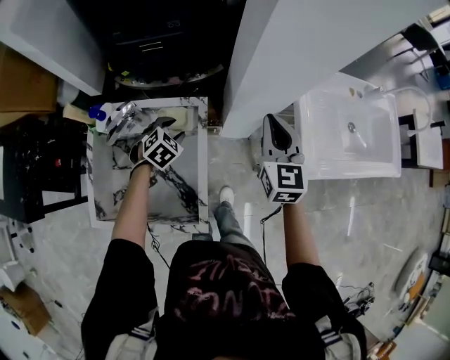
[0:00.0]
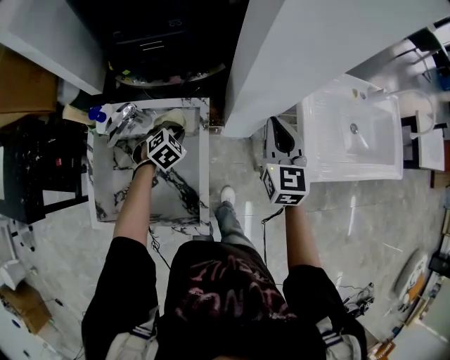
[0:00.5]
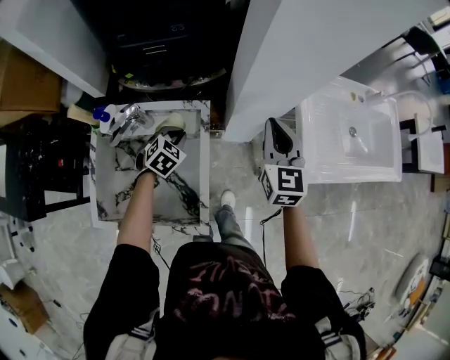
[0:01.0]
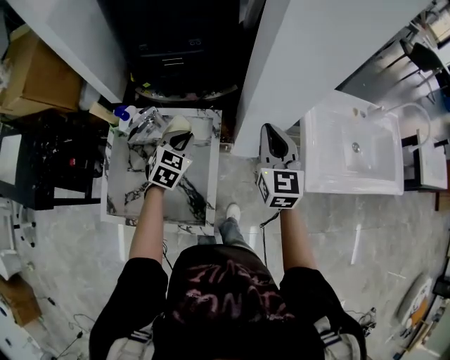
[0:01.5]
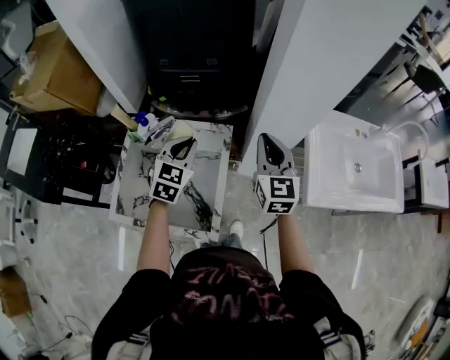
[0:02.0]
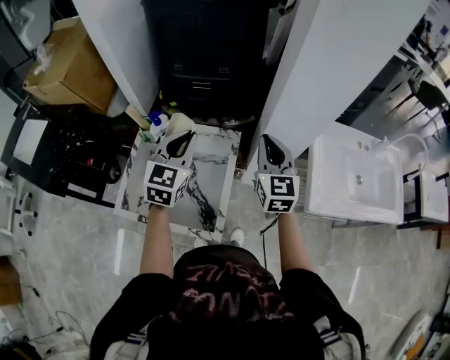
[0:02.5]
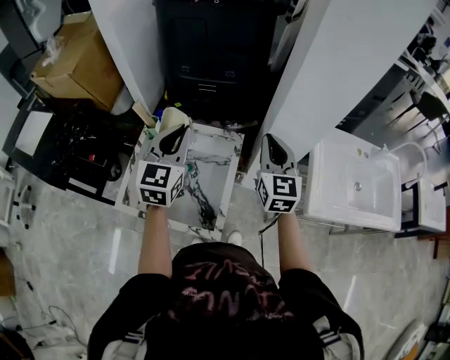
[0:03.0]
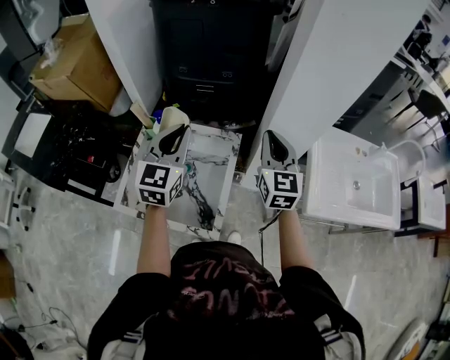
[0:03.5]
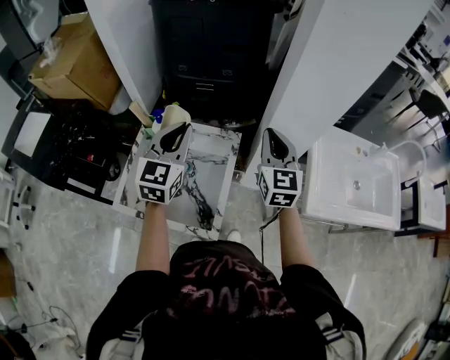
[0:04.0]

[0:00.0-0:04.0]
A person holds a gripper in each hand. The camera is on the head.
0:00.0 to 0:02.0: The left gripper shifts about 20 cm upward, tilts its fingers some 30 degrees upward, and closes up. The right gripper travels upward and to the left by some 10 cm.
0:02.0 to 0:04.0: The left gripper travels upward by some 15 cm, and turns by some 20 degrees.

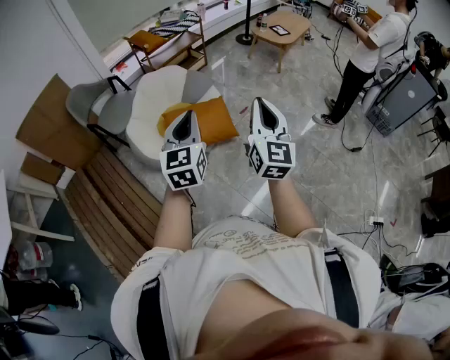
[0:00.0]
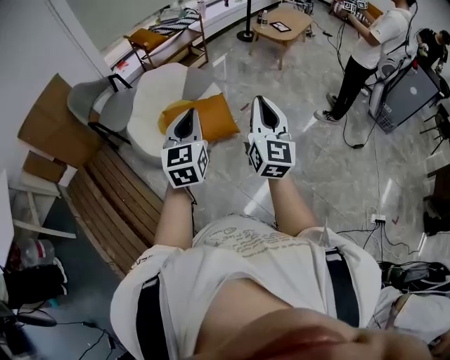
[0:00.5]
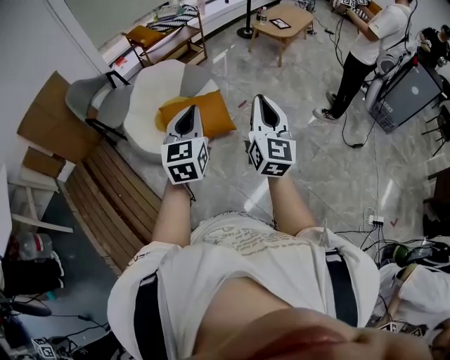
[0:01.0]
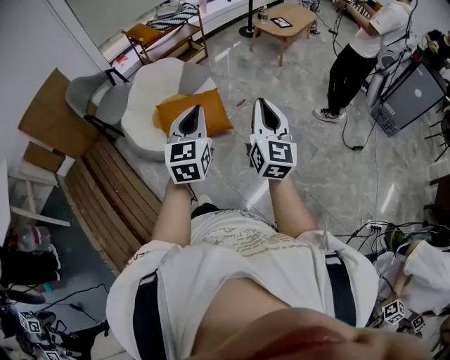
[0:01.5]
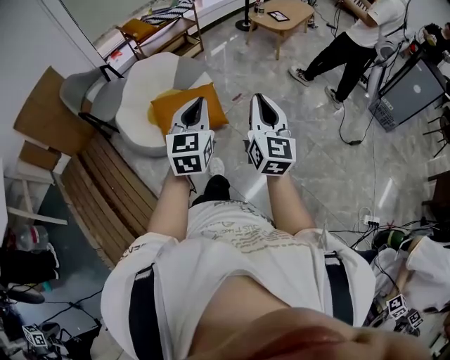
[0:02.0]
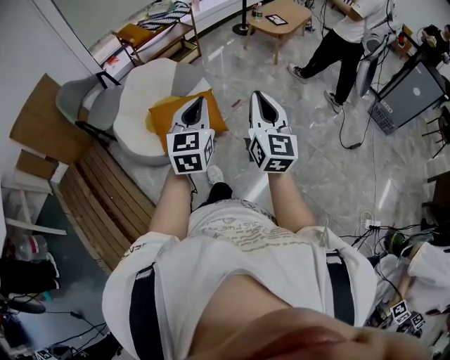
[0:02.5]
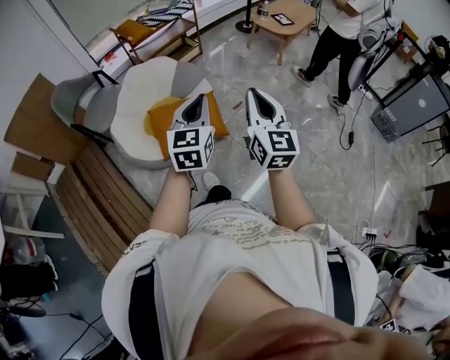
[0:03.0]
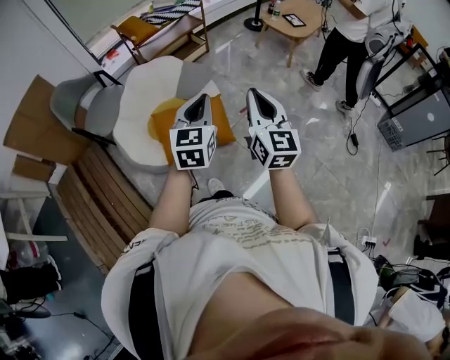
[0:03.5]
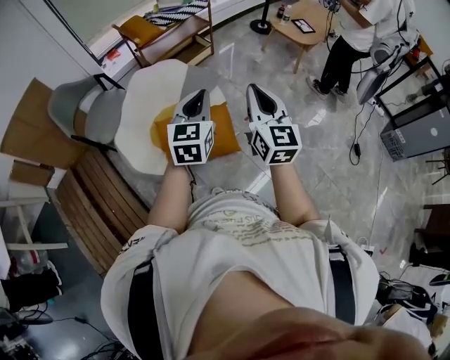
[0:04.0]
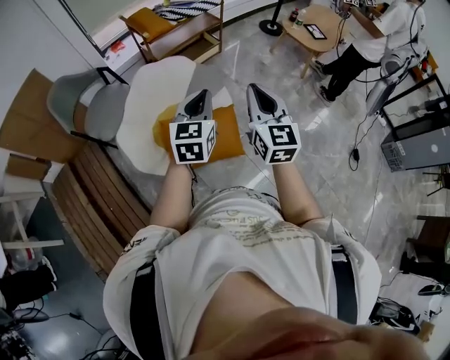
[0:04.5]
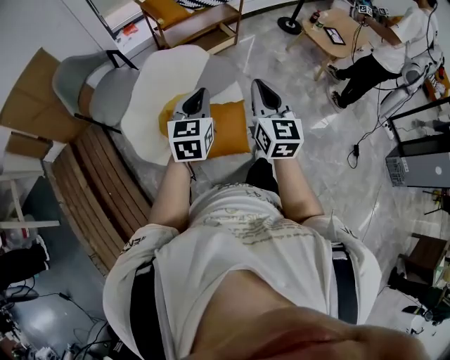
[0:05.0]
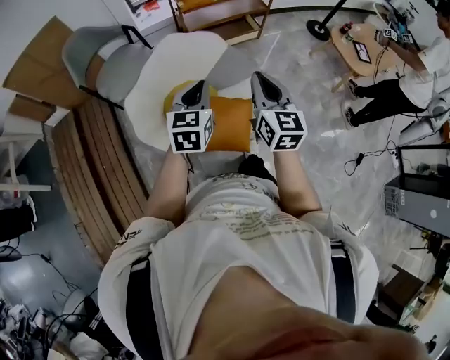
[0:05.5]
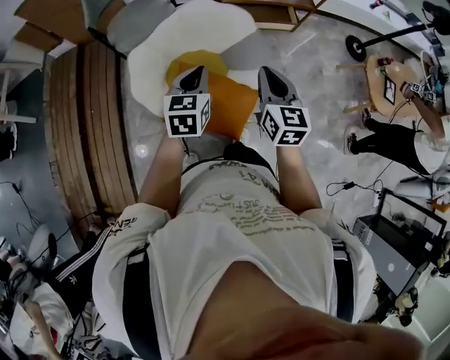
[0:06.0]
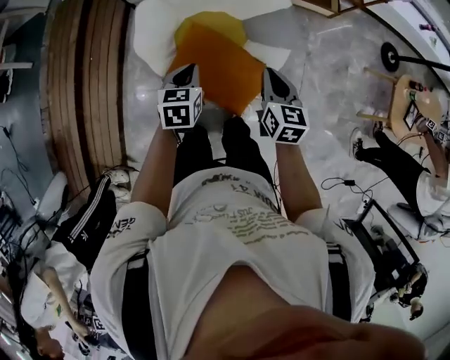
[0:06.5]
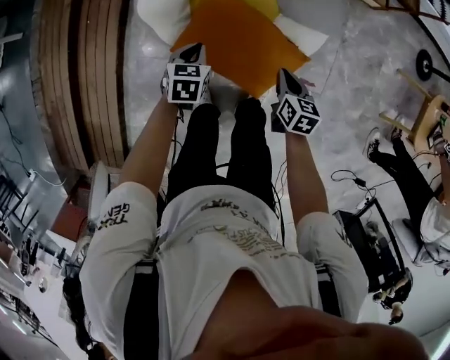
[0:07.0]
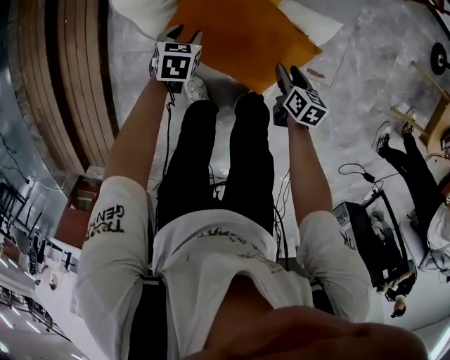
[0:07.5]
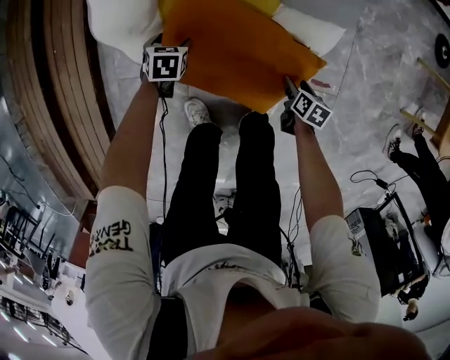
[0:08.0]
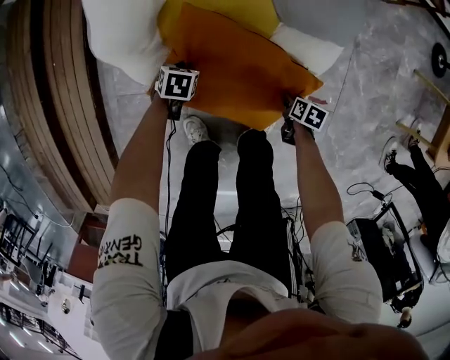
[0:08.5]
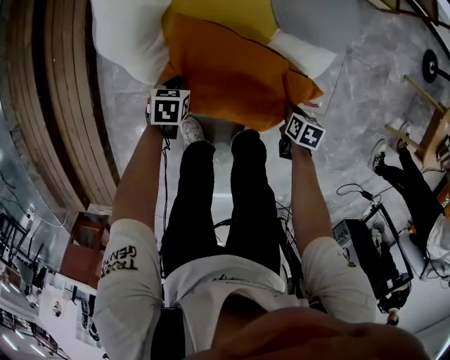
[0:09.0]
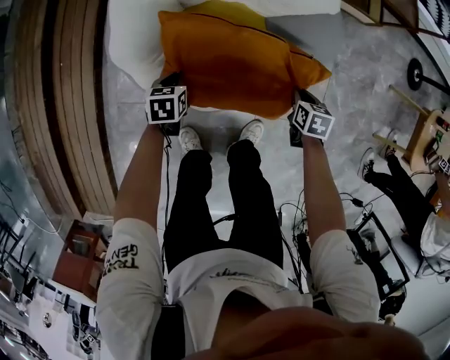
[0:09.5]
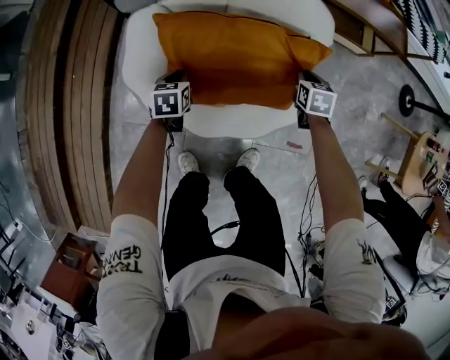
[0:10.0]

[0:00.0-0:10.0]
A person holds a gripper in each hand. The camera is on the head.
0:00.0 to 0:02.0: The two grippers go some 15 cm to the right.
0:02.0 to 0:04.0: Both grippers move forward, approximately 35 cm.
0:04.0 to 0:06.0: The left gripper changes place by approximately 25 cm, and rotates about 40 degrees, while the right gripper changes place by some 30 cm, and rotates about 40 degrees.
0:06.0 to 0:08.0: Both grippers travel together downward, about 60 cm. The left gripper points its fingers roughly 40 degrees further downward, and opens; the right gripper tips its fingers downward by roughly 50 degrees, and opens.
0:08.0 to 0:10.0: The right gripper shifts by approximately 35 cm, swivels about 40 degrees, and closes. Meanwhile the left gripper moves upward, some 15 cm, turns by approximately 20 degrees, and closes.

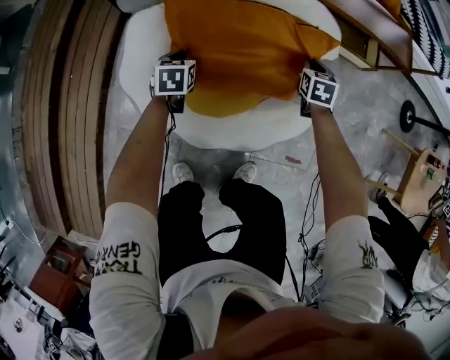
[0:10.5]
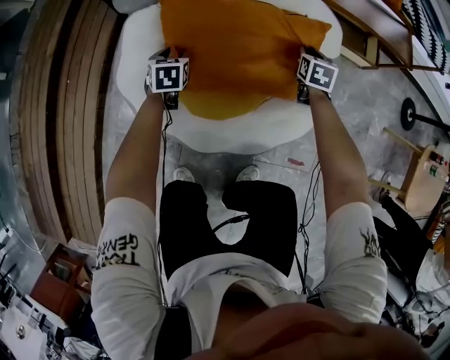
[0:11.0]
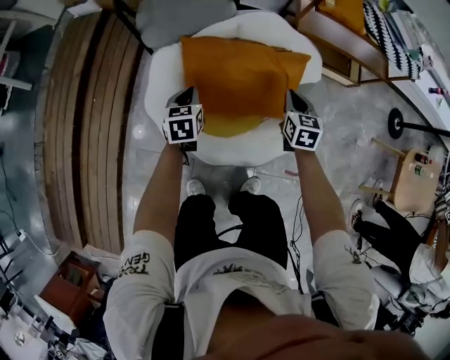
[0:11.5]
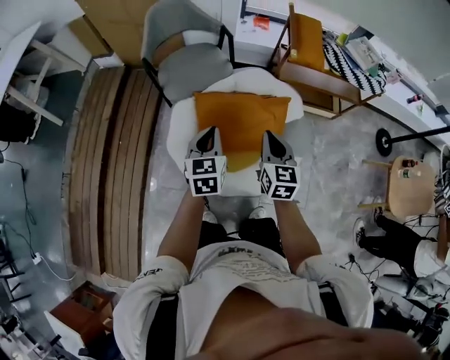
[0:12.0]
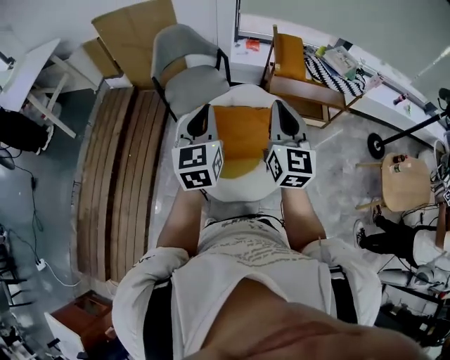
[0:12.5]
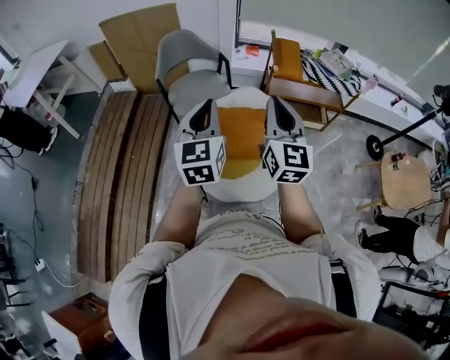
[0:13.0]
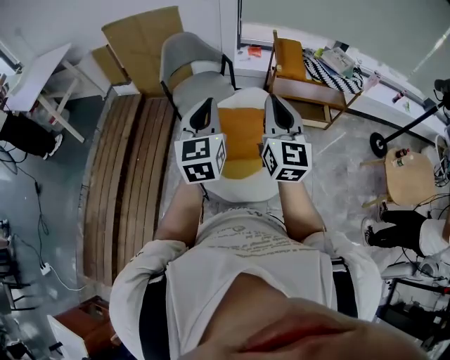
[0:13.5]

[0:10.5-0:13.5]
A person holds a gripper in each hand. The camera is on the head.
0:10.5 to 0:12.0: The left gripper is displaced upward by about 40 cm, turns by roughly 20 degrees, and opens and closes again, while the right gripper heads upward, backward and to the left, covering approximately 50 cm, and swivels approximately 30 degrees.
0:12.0 to 0:13.5: The grippers both shift upward by some 30 cm. The left gripper turns by roughly 20 degrees, while the right gripper rotates approximately 30 degrees.

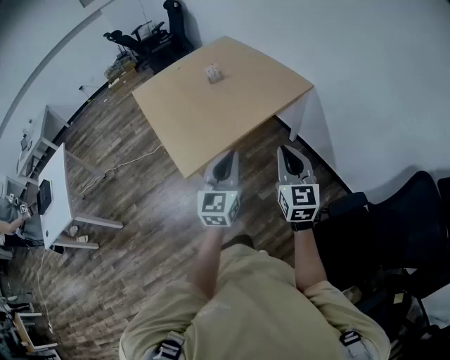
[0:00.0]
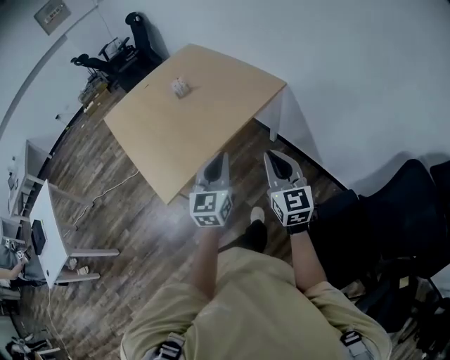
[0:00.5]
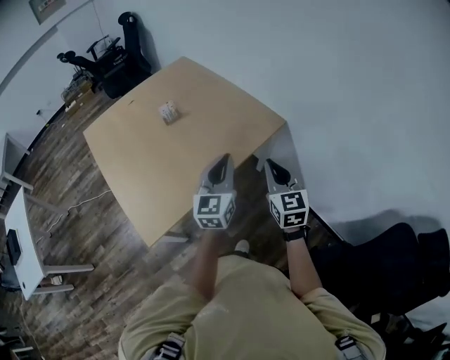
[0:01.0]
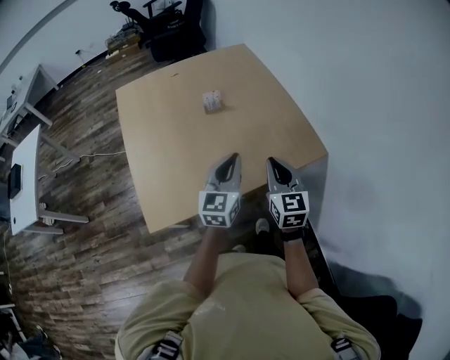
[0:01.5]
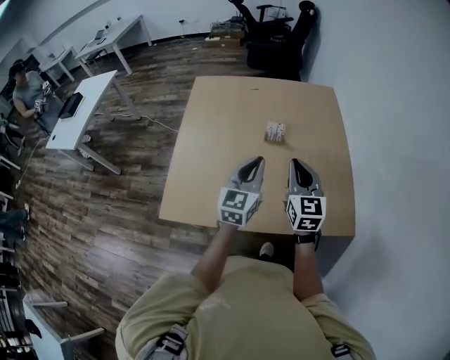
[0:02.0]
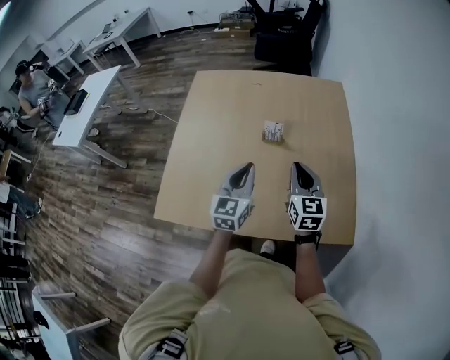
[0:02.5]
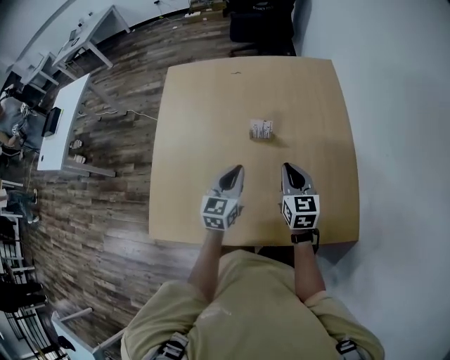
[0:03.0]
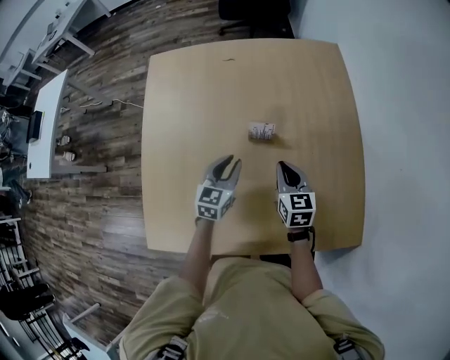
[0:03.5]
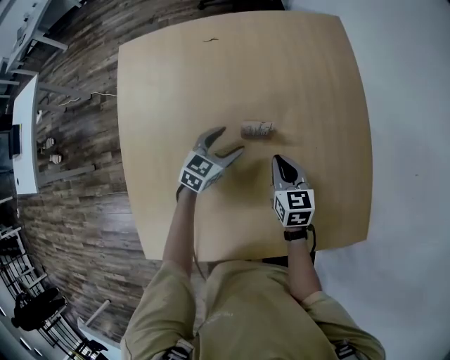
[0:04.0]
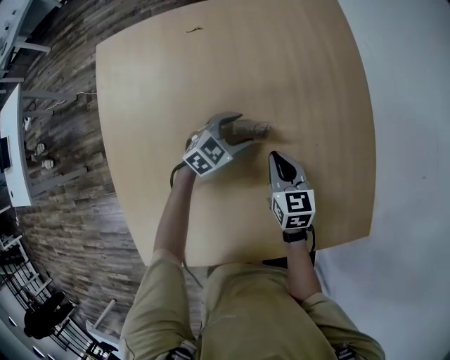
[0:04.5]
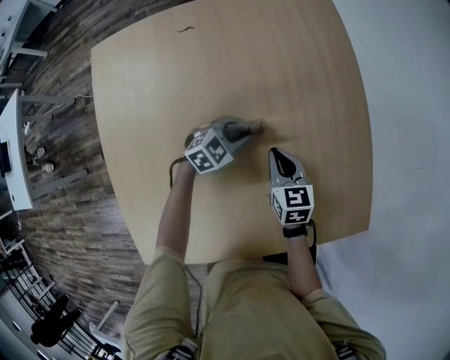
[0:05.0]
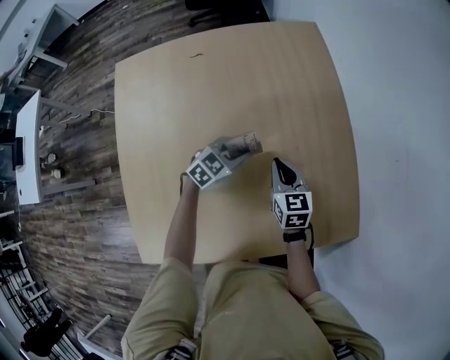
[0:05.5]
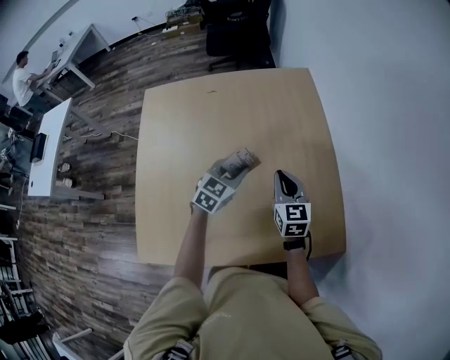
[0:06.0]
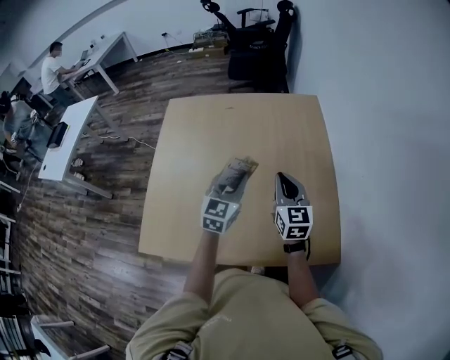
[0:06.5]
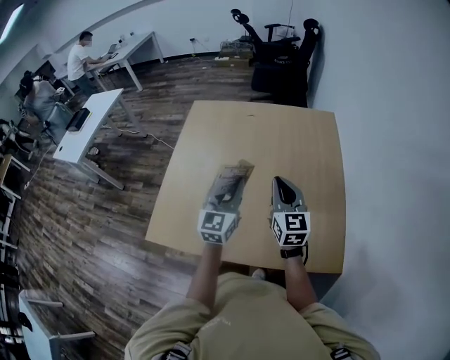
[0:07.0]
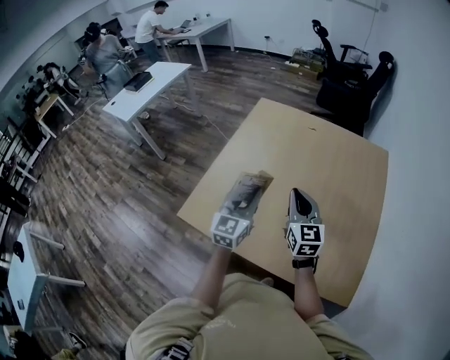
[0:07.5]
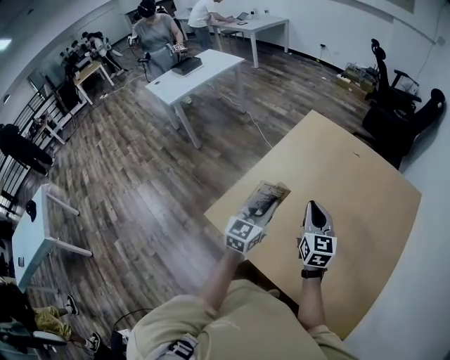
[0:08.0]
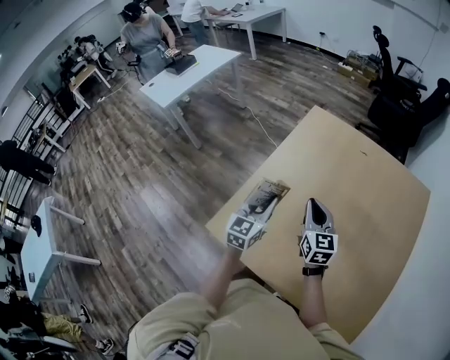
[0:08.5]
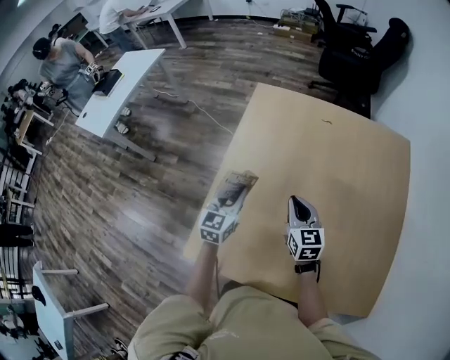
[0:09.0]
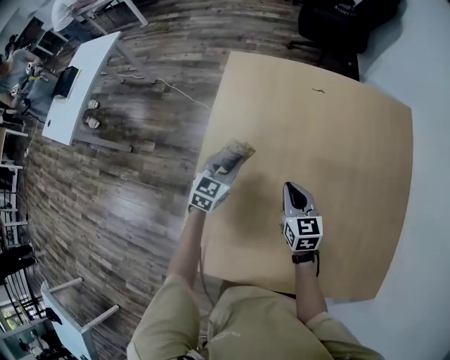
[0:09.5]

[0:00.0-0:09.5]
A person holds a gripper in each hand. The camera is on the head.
0:00.0 to 0:02.0: The pair of grippers is taken about 50 cm. The right gripper swivels roughly 40 degrees, while the left gripper changes its angle by approximately 30 degrees.
0:02.0 to 0:04.0: The grippers both shift downward and forward by about 40 cm. The left gripper turns by approximately 40 degrees, and opens up, while the right gripper rotates roughly 30 degrees.
0:04.0 to 0:05.5: The left gripper heads to the right, covering about 10 cm, turns by approximately 20 degrees, and closes its fingers; the right gripper goes about 5 cm to the right.
0:05.5 to 0:07.5: The left gripper changes place by some 40 cm, and points its fingers roughly 30 degrees further upward. Meanwhile the right gripper goes about 25 cm upward, and turns by approximately 40 degrees.
0:07.5 to 0:09.5: Both grippers travel together forward and downward, about 40 cm. The left gripper swivels about 30 degrees. The right gripper swivels about 30 degrees.
